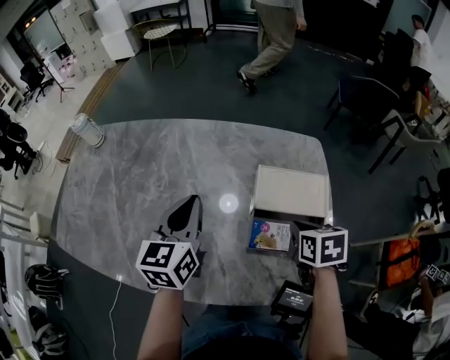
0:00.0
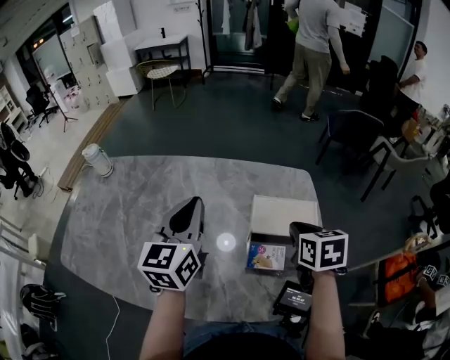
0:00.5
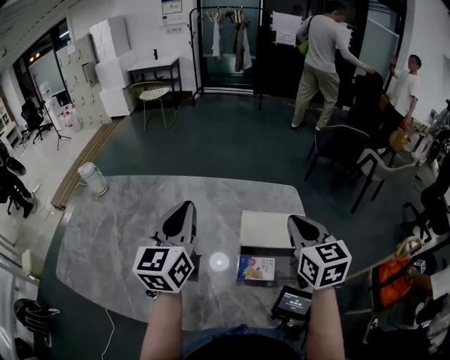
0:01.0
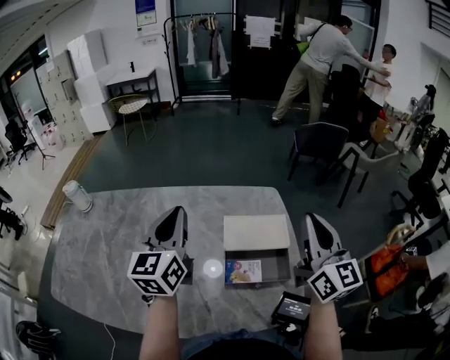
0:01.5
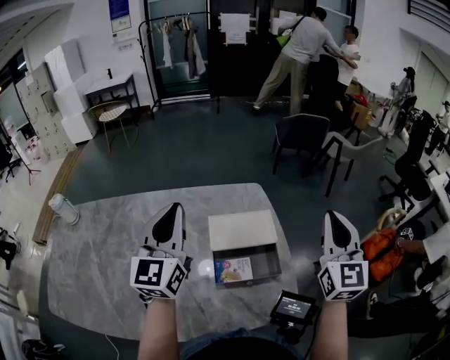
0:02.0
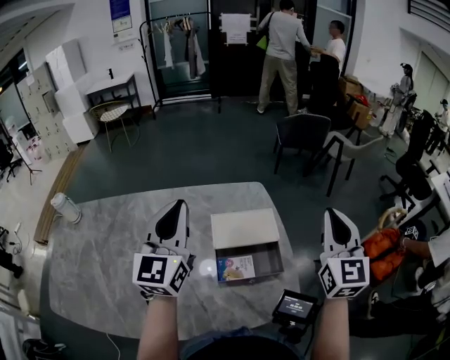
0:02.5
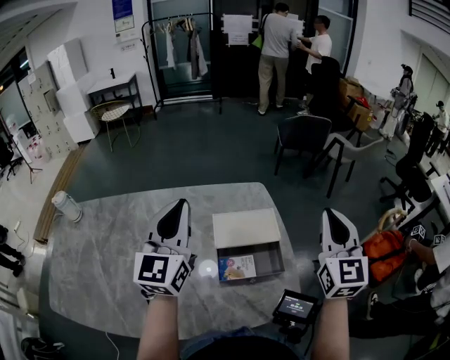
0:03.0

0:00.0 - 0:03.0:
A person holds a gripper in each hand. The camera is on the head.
0:00.0 - 0:01.5: The right gripper shifts roughly 25 cm upward, and tips its fingers upward by some 70 degrees, while the left gripper is displaced upward by some 10 cm.
0:01.5 - 0:03.0: The right gripper travels to the right by approximately 10 cm, and rotates approximately 30 degrees; the left gripper heads to the right, covering approximately 5 cm.

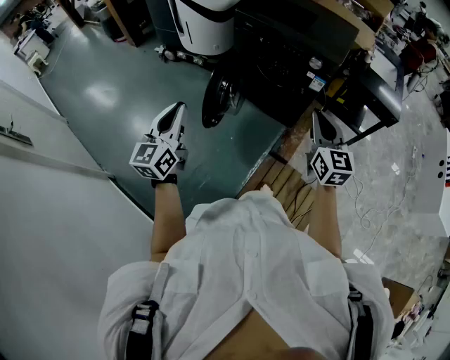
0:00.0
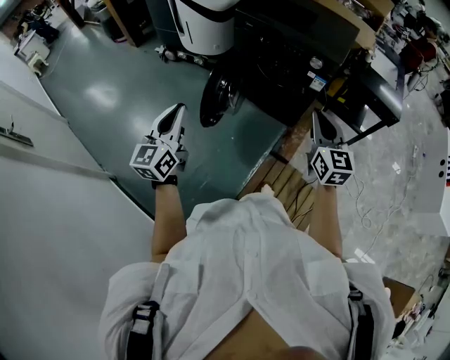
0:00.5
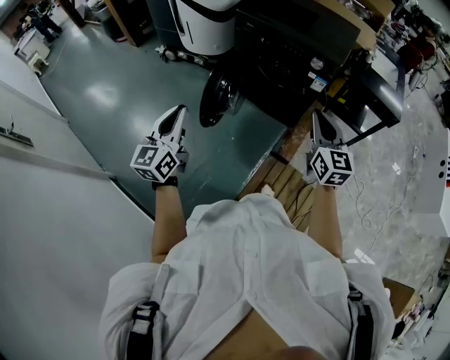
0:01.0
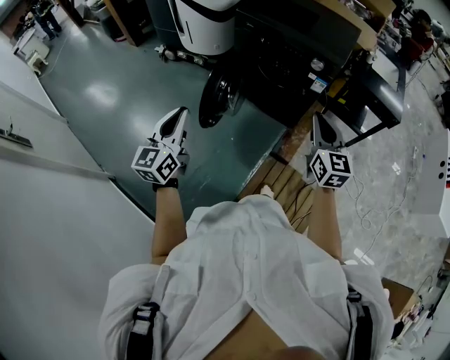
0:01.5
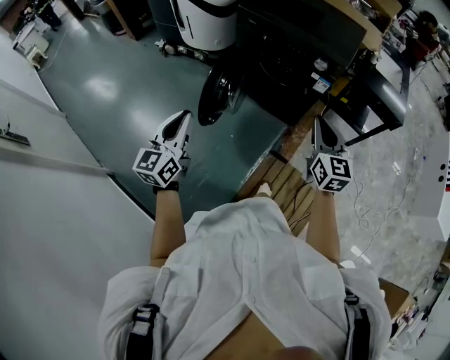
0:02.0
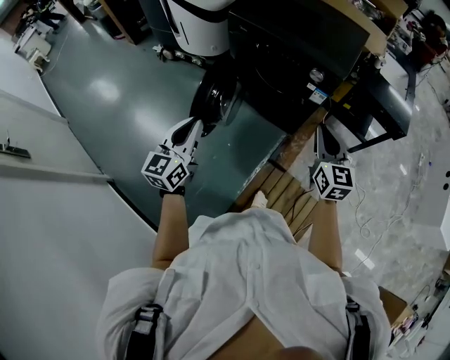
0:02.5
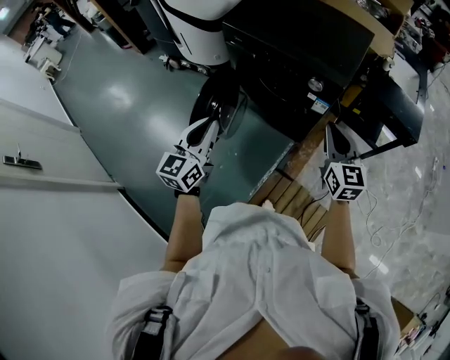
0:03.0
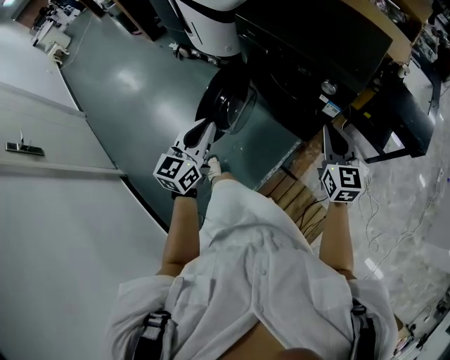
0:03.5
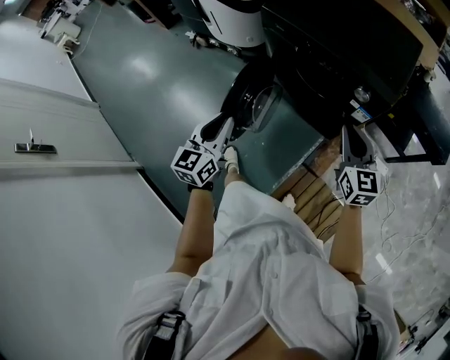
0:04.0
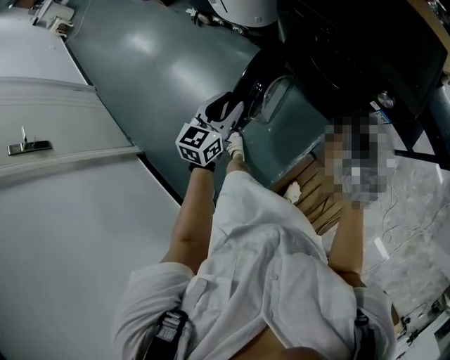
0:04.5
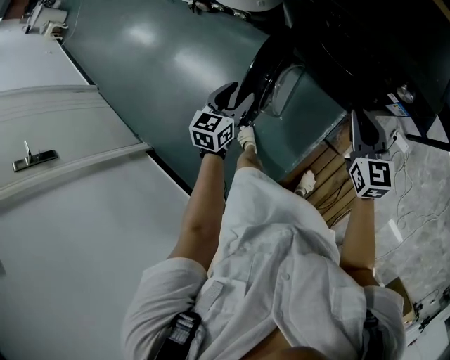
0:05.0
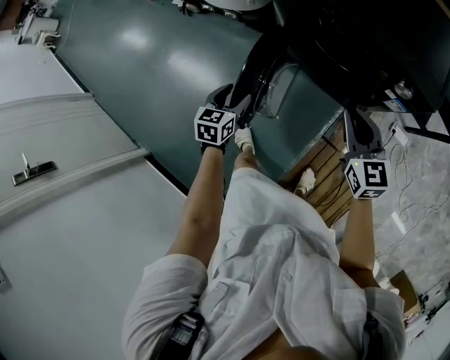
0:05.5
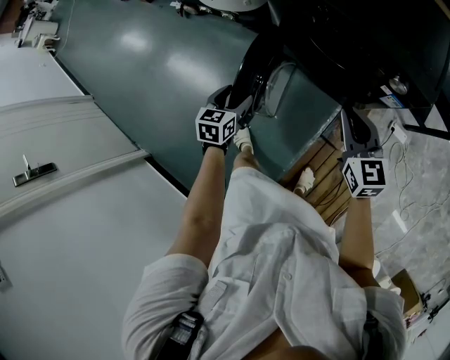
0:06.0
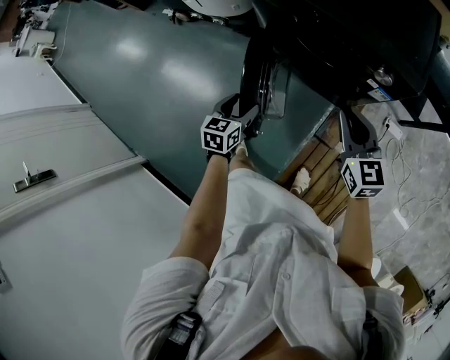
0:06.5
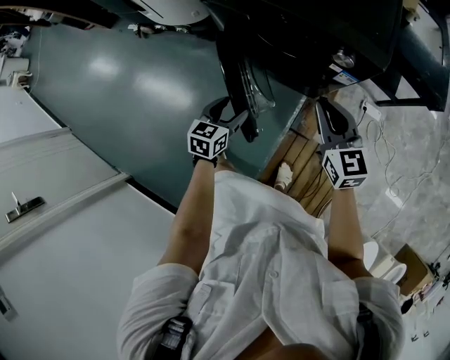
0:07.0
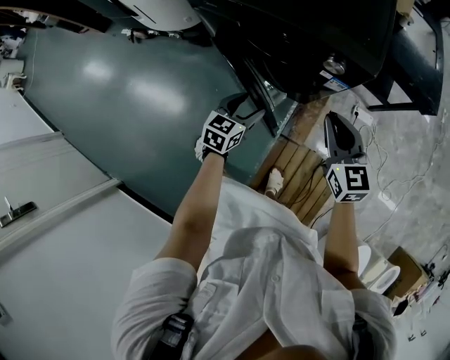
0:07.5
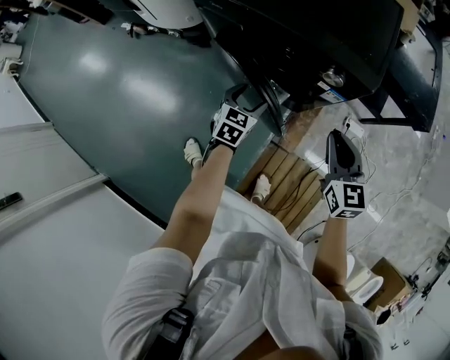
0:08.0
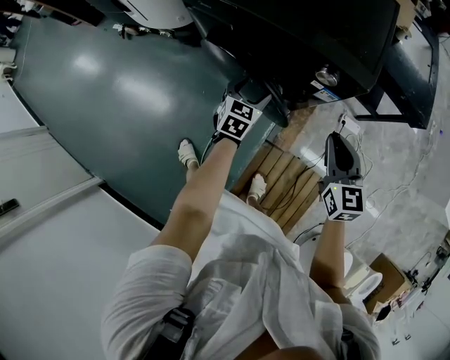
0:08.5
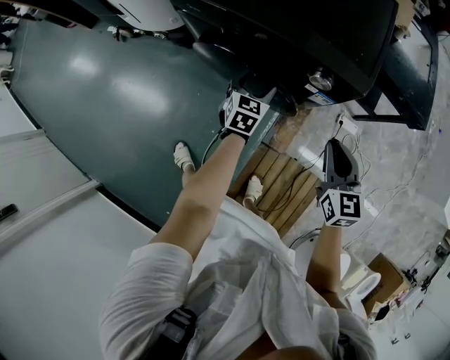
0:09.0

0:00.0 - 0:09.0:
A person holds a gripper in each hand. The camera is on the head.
0:00.0 - 0:02.0: There are only small adjustments of the grippers.
0:02.0 - 0:04.5: Both grippers move forward and downward, roughly 30 cm. The left gripper opens up.
0:04.5 - 0:07.0: The left gripper heads downward and to the right, covering some 20 cm, swivels approximately 20 degrees, and opens up; the right gripper changes place by approximately 5 cm.
0:07.0 - 0:09.0: The right gripper shifts about 15 cm to the right, while the left gripper travels forward and to the right by about 25 cm.

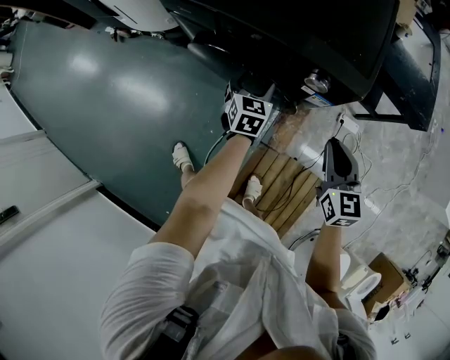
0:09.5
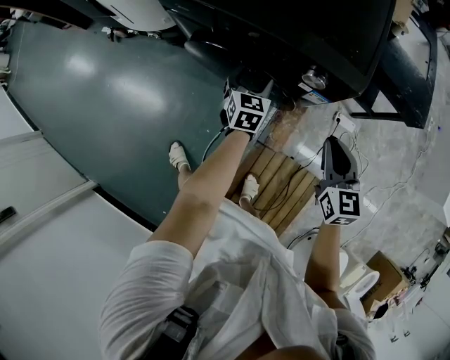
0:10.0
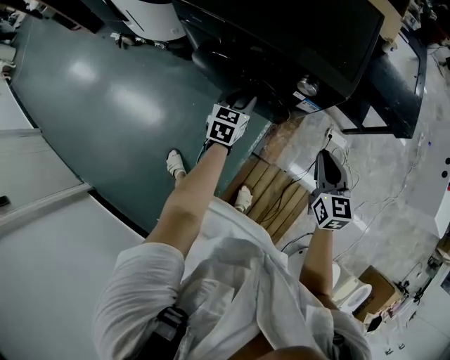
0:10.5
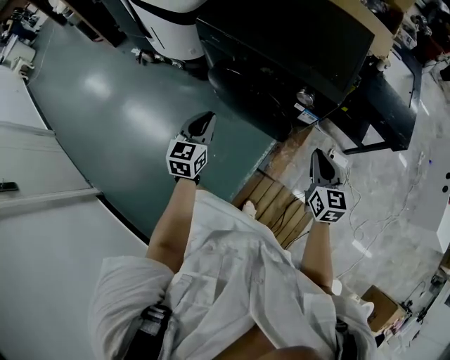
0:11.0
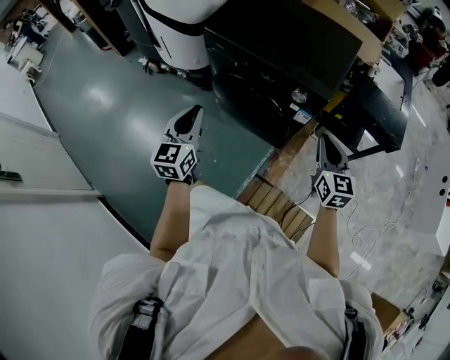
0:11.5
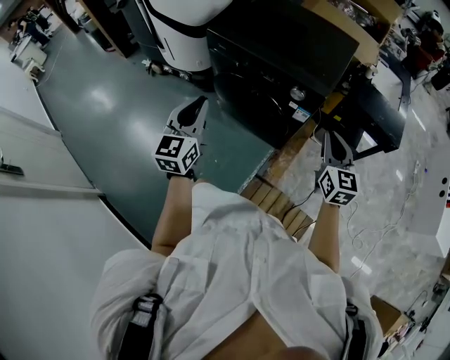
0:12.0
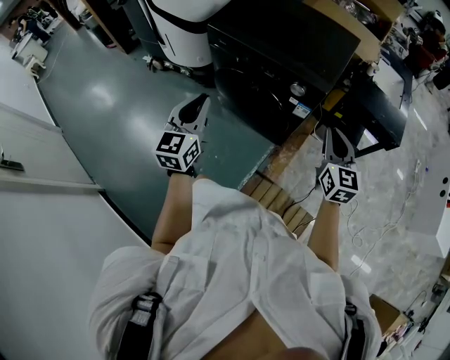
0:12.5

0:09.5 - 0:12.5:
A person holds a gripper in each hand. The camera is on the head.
0:09.5 - 0:11.0: The right gripper heads backward and upward, covering about 10 cm. Meanwhile the left gripper is displaced backward, upward and to the left by roughly 25 cm, and closes up.
0:11.0 - 0:12.5: The left gripper moves upward and backward, some 20 cm; the right gripper shifts approximately 10 cm upward.

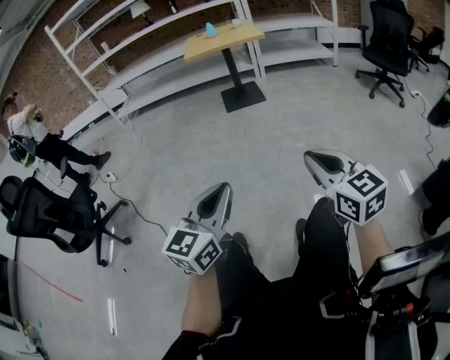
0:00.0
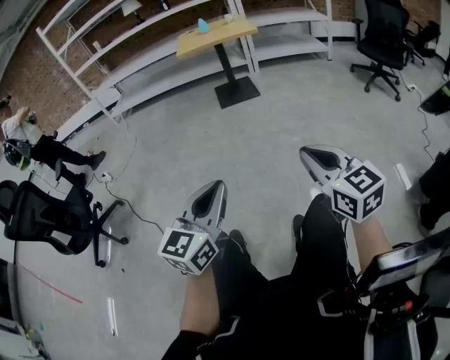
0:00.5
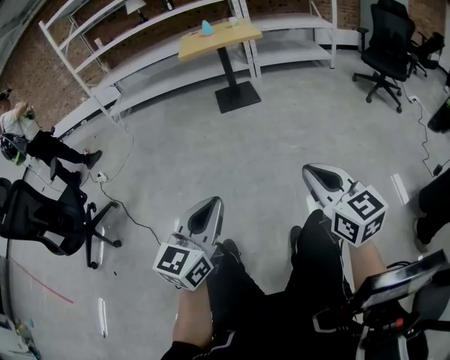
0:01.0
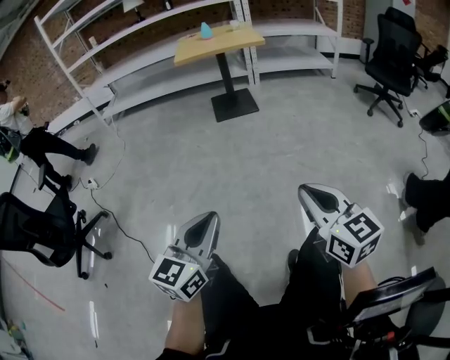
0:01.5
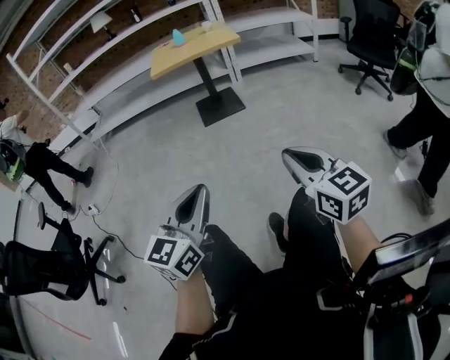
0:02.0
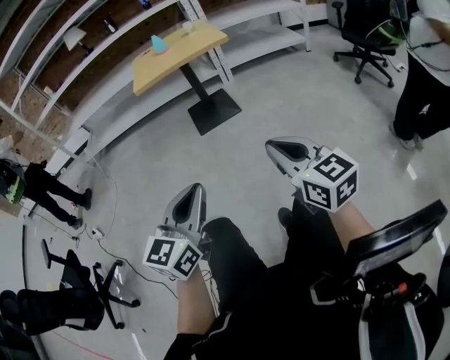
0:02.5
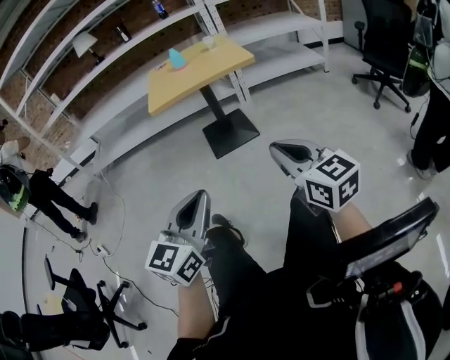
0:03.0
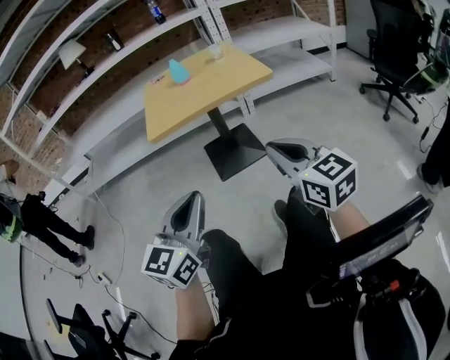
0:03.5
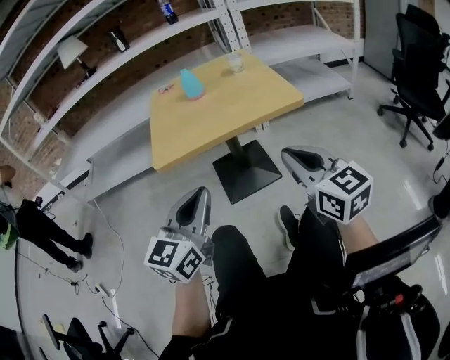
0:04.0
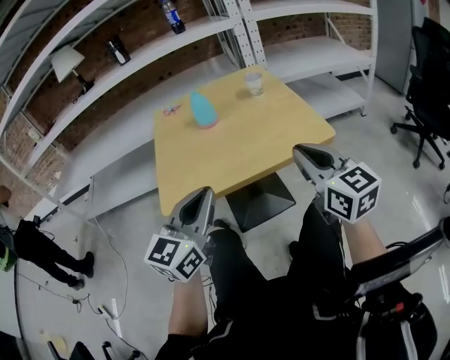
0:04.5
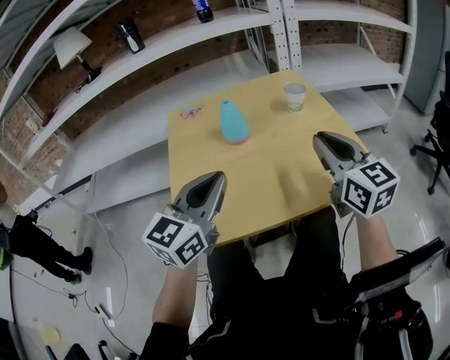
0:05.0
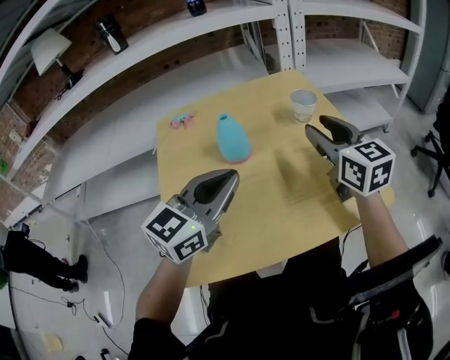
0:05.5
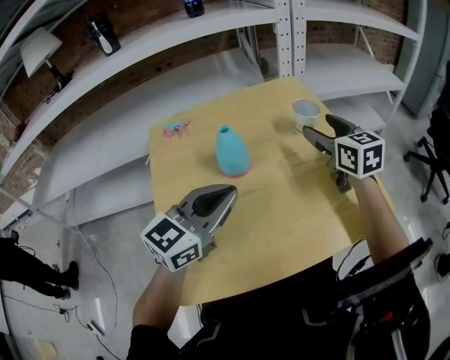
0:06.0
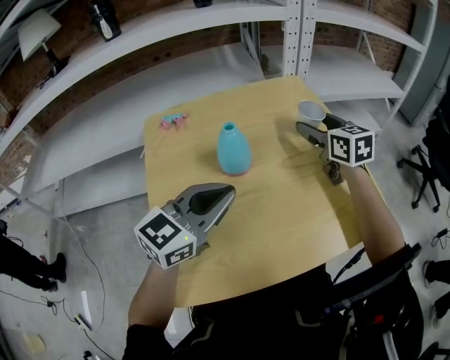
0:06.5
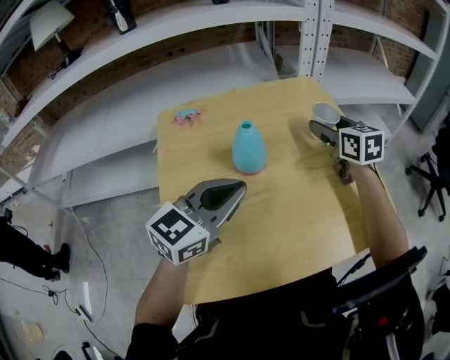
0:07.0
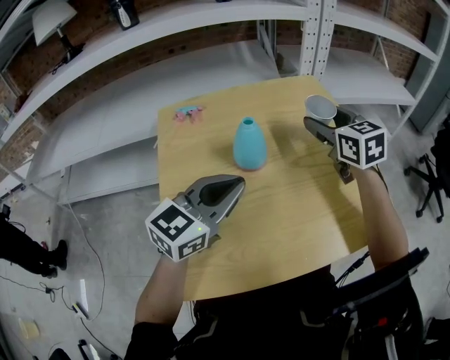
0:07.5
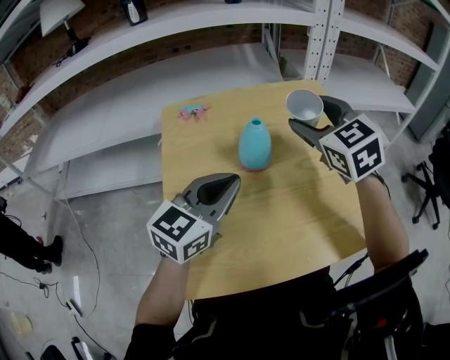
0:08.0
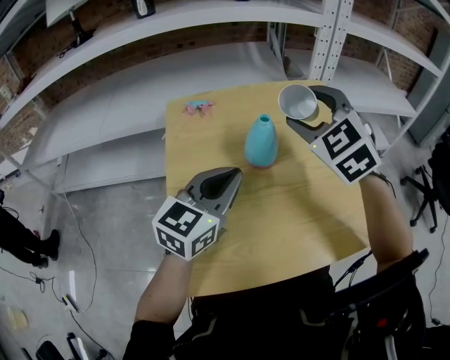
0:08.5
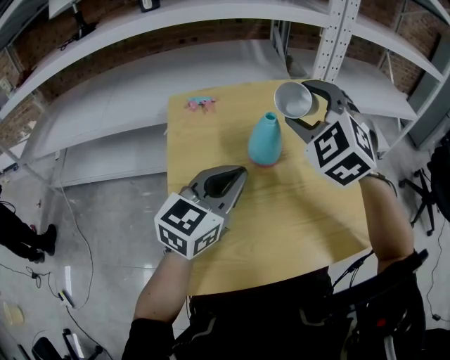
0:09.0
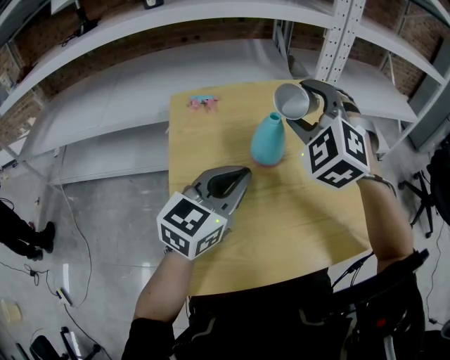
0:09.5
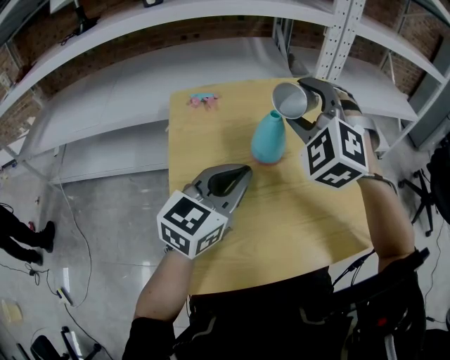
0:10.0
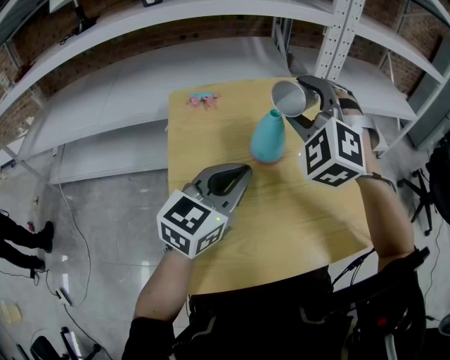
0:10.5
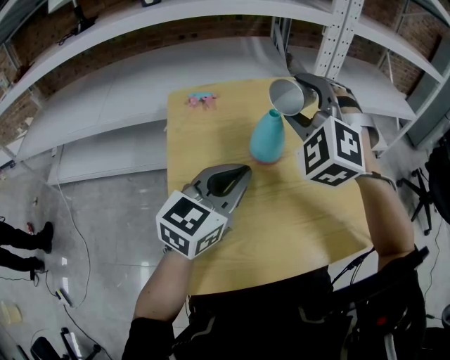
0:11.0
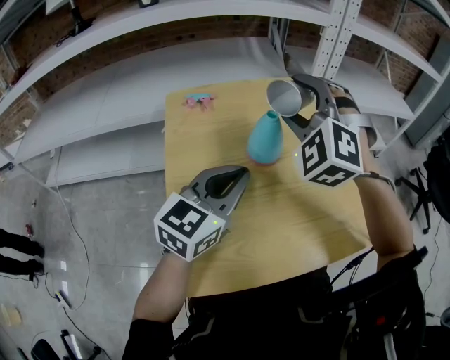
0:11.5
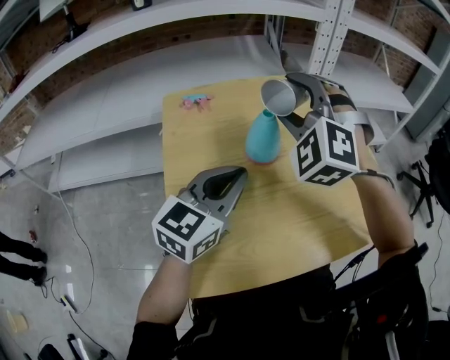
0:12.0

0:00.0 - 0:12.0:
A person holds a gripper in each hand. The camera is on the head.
0:00.0 - 0:02.0: The grippers both shift forward by some 20 cm.
0:02.0 - 0:04.0: The two grippers travel together, forward, about 70 cm.
0:04.0 - 0:06.0: Both grippers are carried forward, some 50 cm. The left gripper swivels roughly 20 degrees; the right gripper opens its fingers.
0:06.0 - 0:08.0: The right gripper travels to the left and upward by about 15 cm, and rotates some 30 degrees.
0:08.0 - 0:10.0: The right gripper is displaced to the left by about 5 cm, and rolls counterclockwise, seen from behind, by about 40 degrees.
0:10.0 - 0:12.0: Both grippers stay about where they are.
